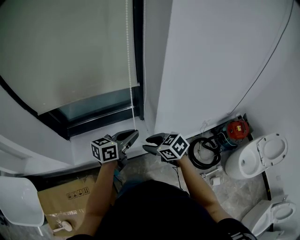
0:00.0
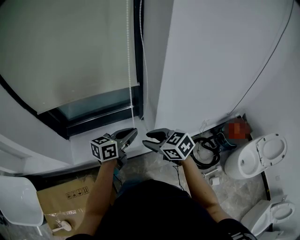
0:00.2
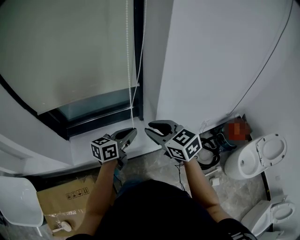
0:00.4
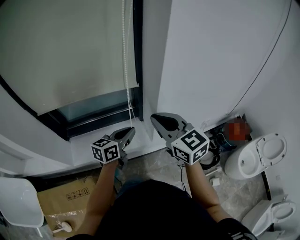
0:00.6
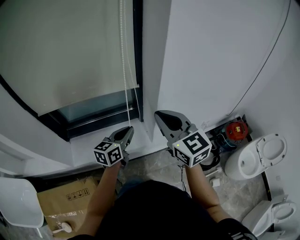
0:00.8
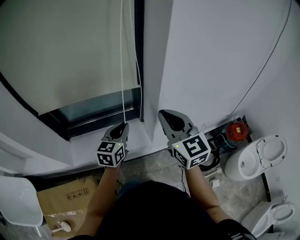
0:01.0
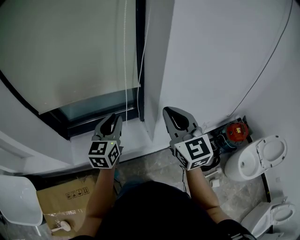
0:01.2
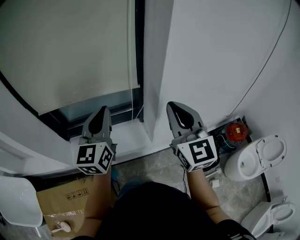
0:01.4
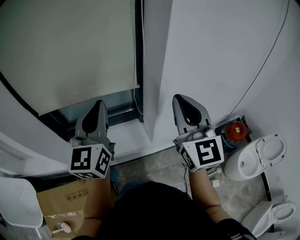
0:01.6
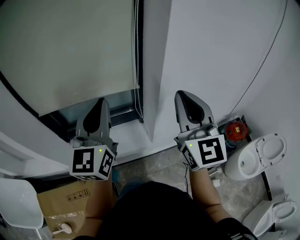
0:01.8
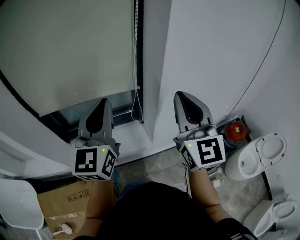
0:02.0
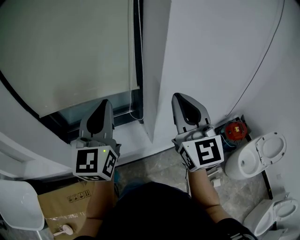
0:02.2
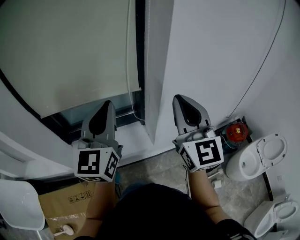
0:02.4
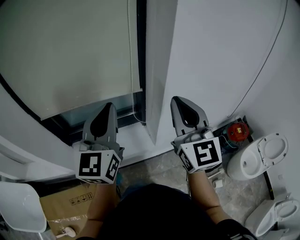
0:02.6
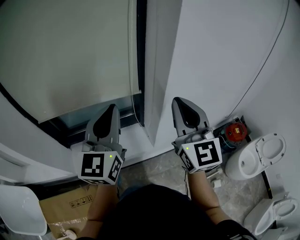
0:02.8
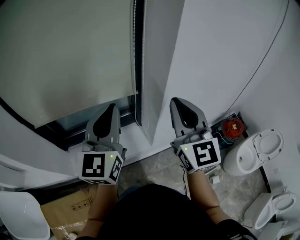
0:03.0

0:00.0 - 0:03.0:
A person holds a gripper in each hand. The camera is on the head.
0:00.0 - 0:01.6: The right gripper heads upward, covering approximately 30 cm, and tilts its fingers approximately 50 degrees upward. Meanwhile the left gripper travels upward and to the left by some 25 cm, and swivels about 60 degrees.
0:01.6 - 0:03.0: The grippers move only a little.

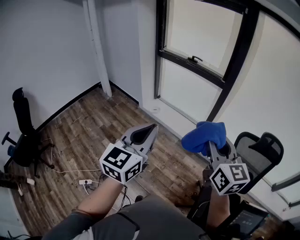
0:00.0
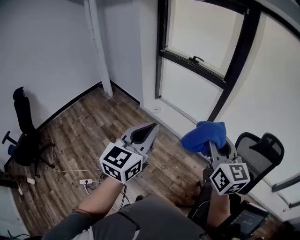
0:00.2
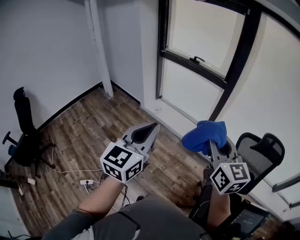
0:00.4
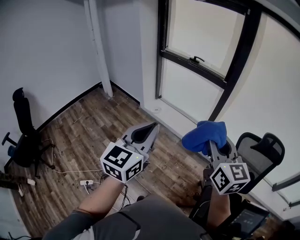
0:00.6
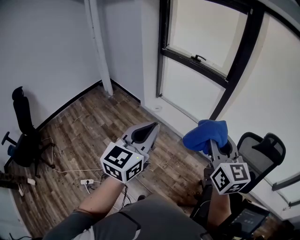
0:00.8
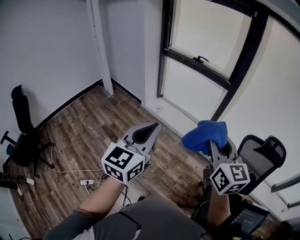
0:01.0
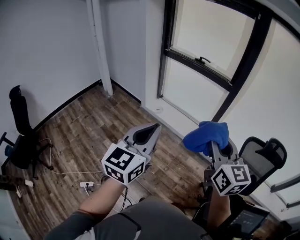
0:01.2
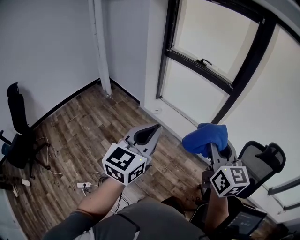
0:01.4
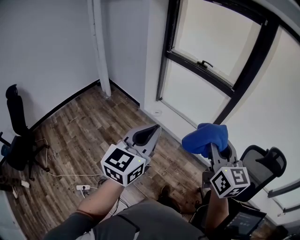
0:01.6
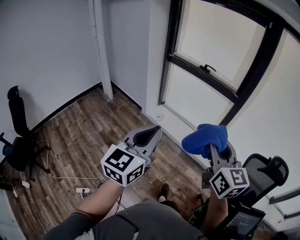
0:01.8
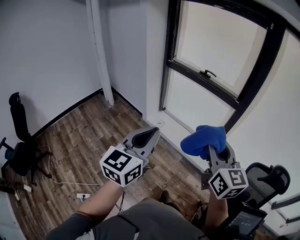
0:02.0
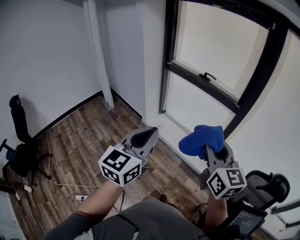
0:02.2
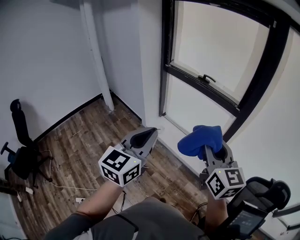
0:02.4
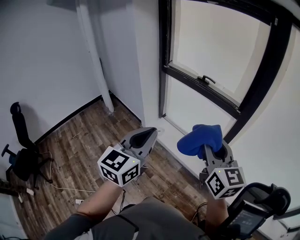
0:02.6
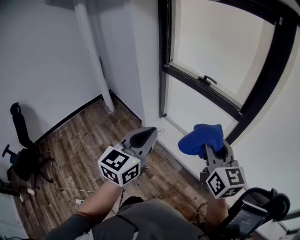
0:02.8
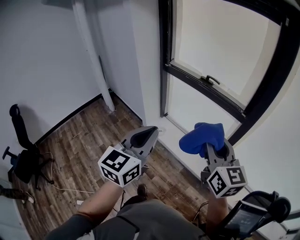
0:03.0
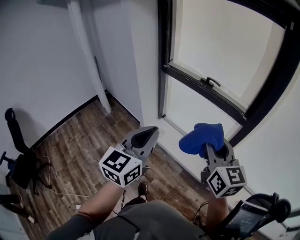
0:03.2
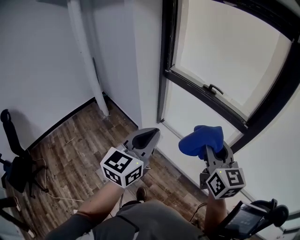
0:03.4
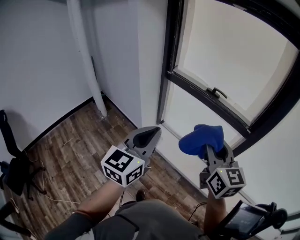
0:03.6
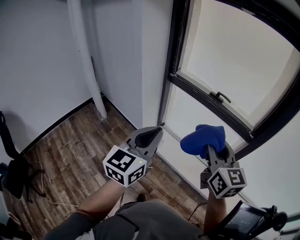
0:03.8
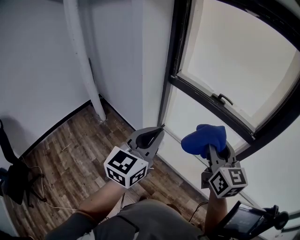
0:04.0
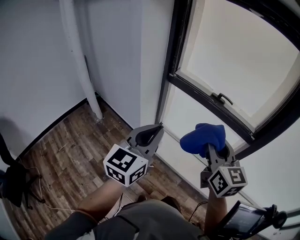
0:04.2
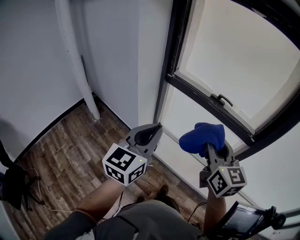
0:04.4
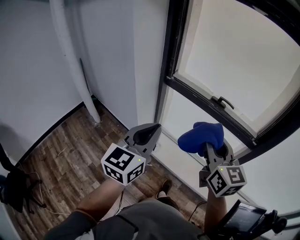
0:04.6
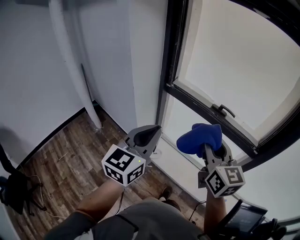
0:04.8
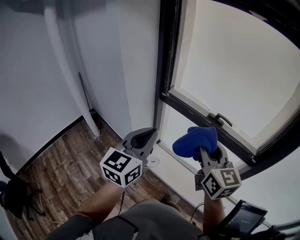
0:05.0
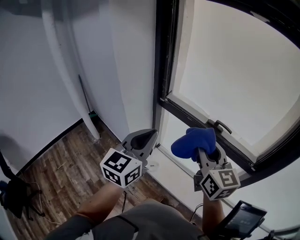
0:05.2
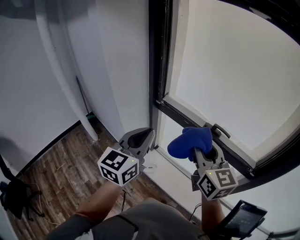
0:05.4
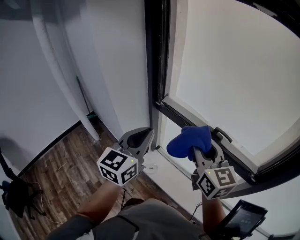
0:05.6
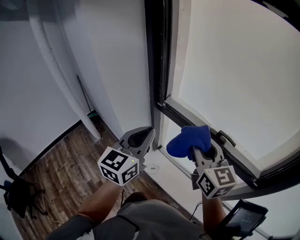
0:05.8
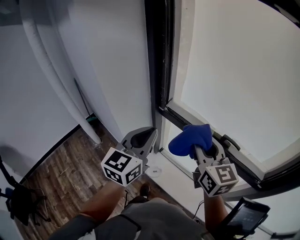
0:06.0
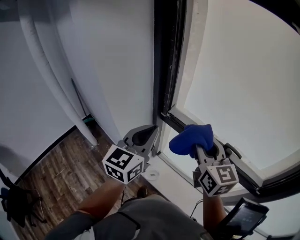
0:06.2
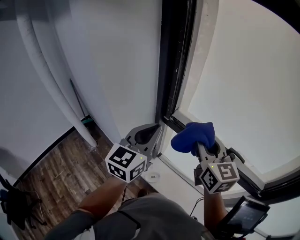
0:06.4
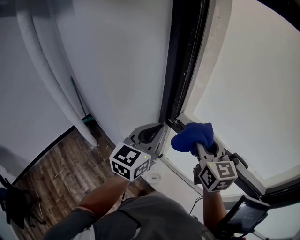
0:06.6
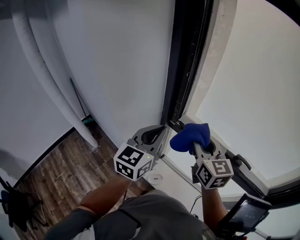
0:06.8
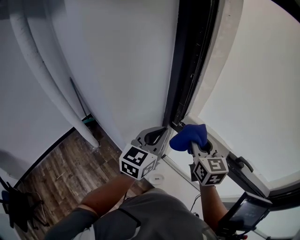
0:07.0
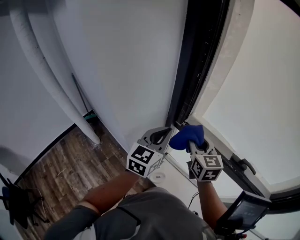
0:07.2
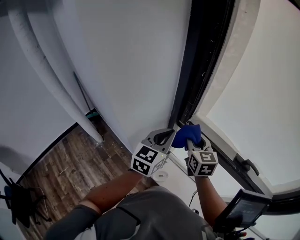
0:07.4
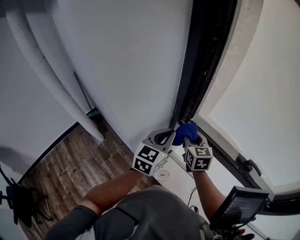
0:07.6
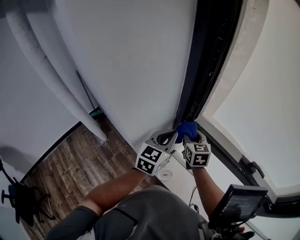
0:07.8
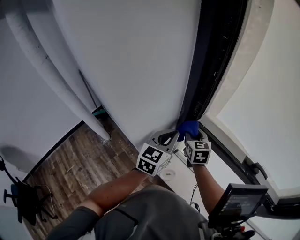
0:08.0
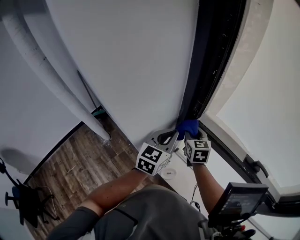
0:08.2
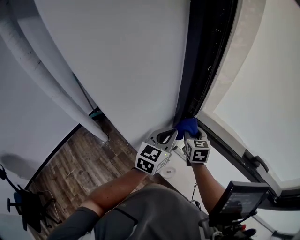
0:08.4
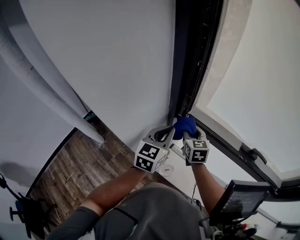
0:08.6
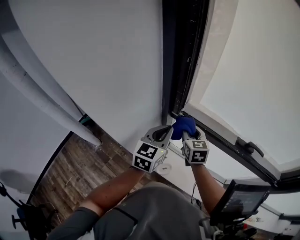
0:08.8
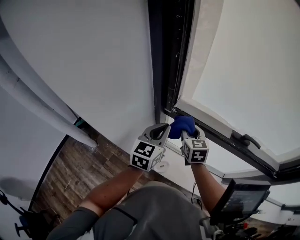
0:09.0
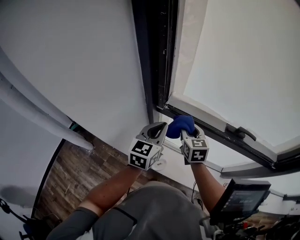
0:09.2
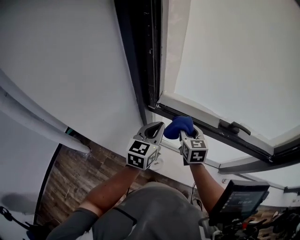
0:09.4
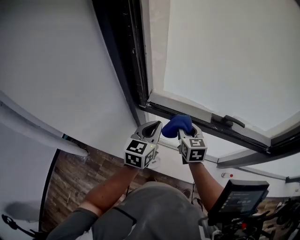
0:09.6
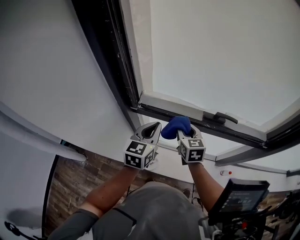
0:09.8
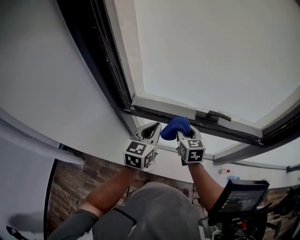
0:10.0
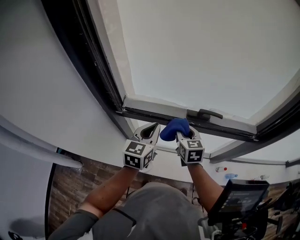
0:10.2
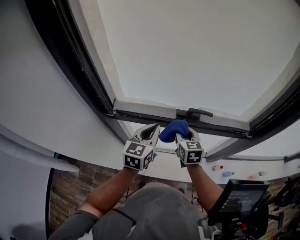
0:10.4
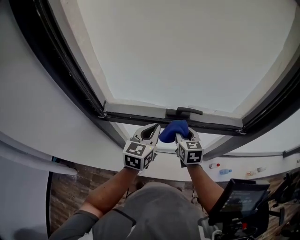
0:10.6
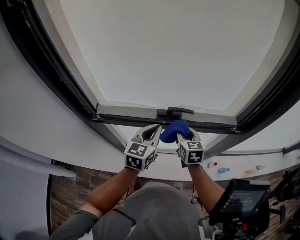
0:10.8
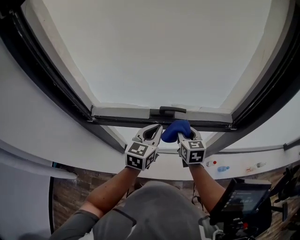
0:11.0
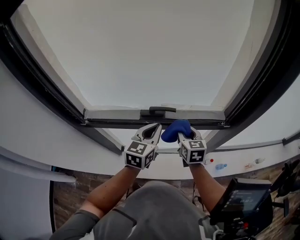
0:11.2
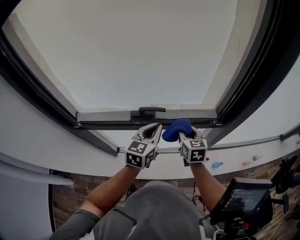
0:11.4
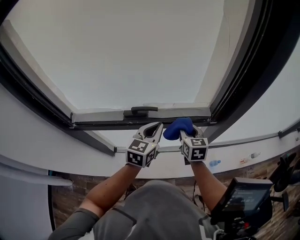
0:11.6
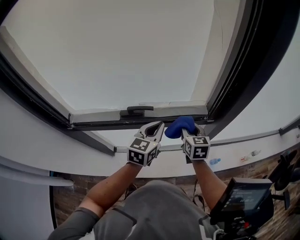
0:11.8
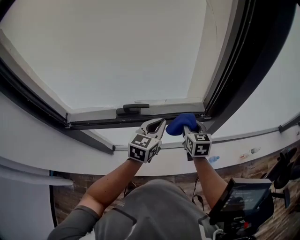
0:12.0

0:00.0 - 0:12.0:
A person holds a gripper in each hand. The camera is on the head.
0:00.0 - 0:01.6: The two grippers go approximately 15 cm to the left and forward.
0:01.6 - 0:03.0: Both grippers move forward, about 30 cm.
0:03.0 - 0:04.4: The two grippers go about 25 cm forward and to the left.
0:04.4 - 0:06.0: The two grippers go roughly 30 cm forward.
0:06.0 - 0:07.6: The grippers both shift forward, downward and to the left by approximately 30 cm.
0:07.6 - 0:09.0: The left gripper moves roughly 5 cm. The right gripper moves to the right, approximately 5 cm.
0:09.0 - 0:10.4: Both grippers move to the right, about 25 cm.
0:10.4 - 0:12.0: Both grippers move to the right, some 30 cm.

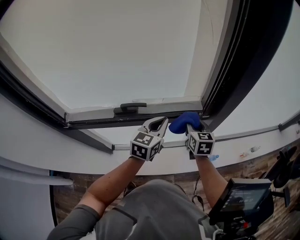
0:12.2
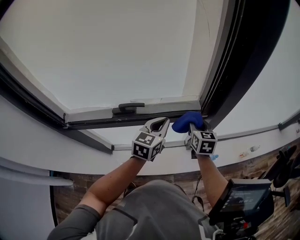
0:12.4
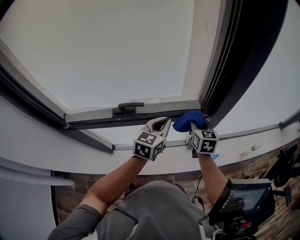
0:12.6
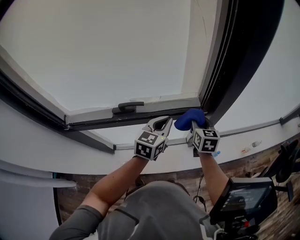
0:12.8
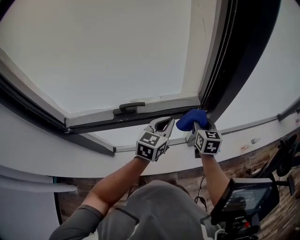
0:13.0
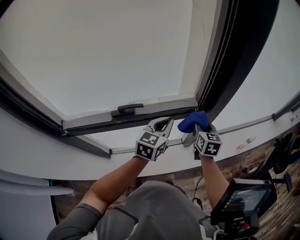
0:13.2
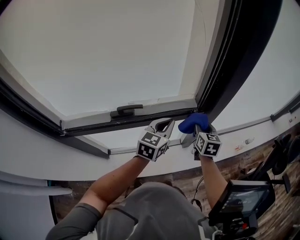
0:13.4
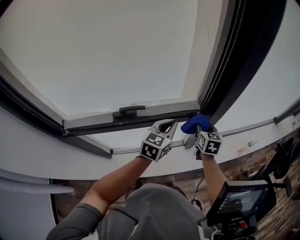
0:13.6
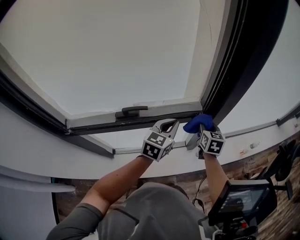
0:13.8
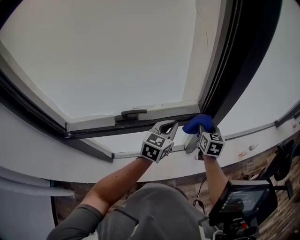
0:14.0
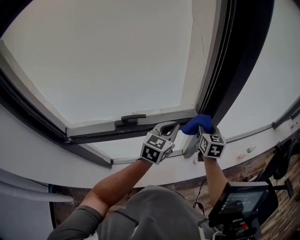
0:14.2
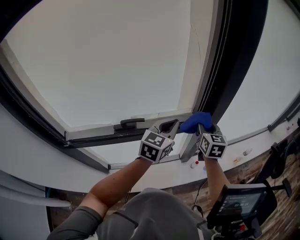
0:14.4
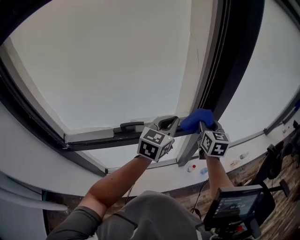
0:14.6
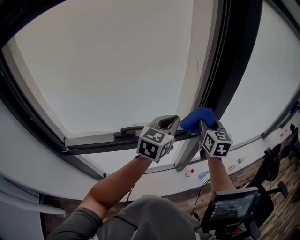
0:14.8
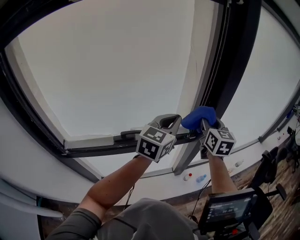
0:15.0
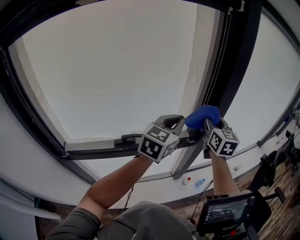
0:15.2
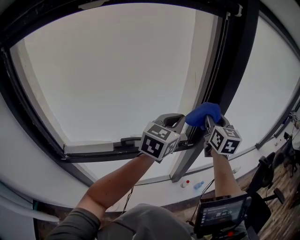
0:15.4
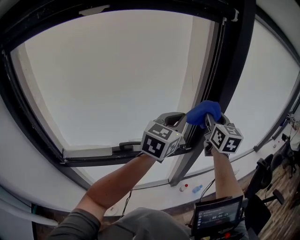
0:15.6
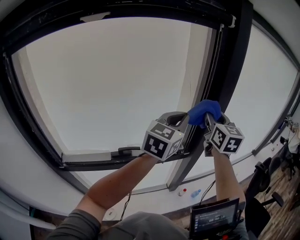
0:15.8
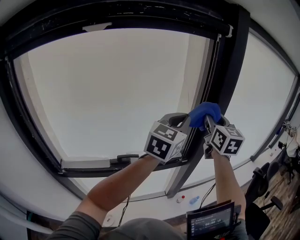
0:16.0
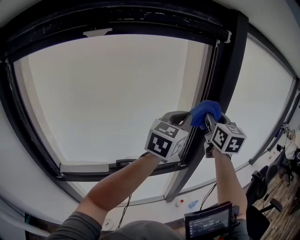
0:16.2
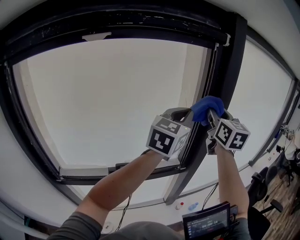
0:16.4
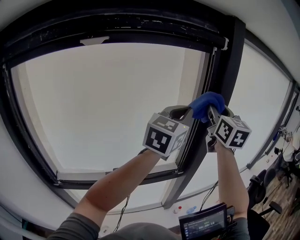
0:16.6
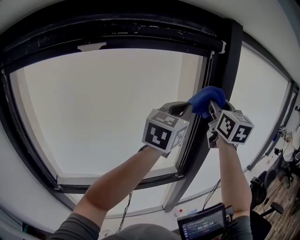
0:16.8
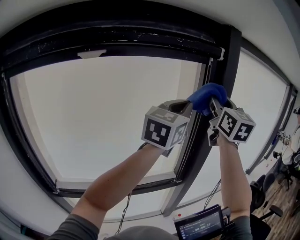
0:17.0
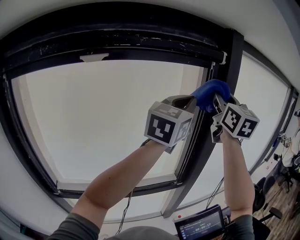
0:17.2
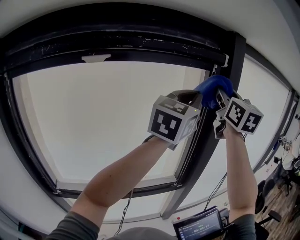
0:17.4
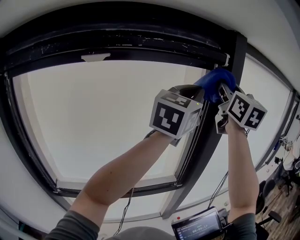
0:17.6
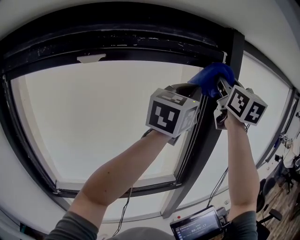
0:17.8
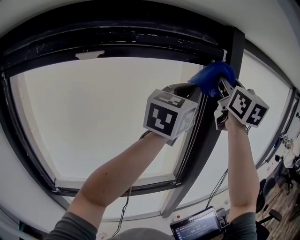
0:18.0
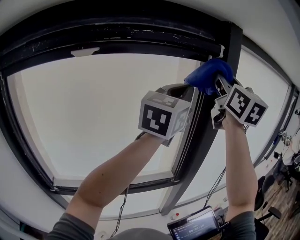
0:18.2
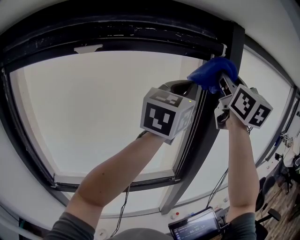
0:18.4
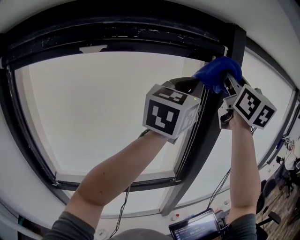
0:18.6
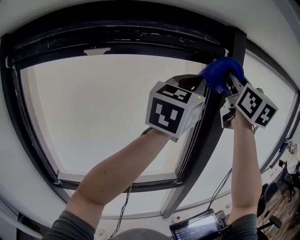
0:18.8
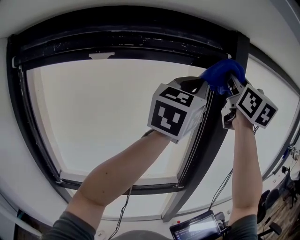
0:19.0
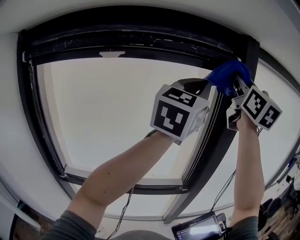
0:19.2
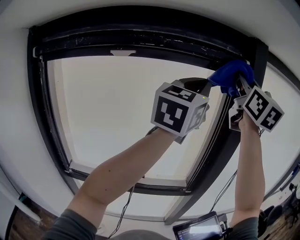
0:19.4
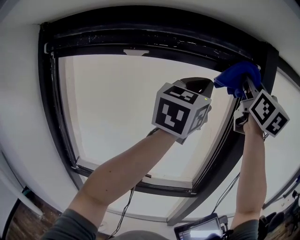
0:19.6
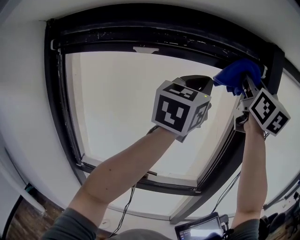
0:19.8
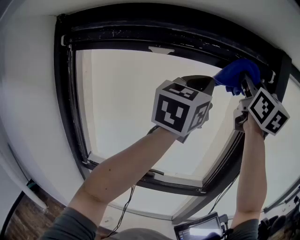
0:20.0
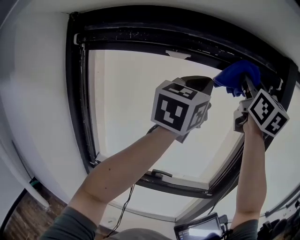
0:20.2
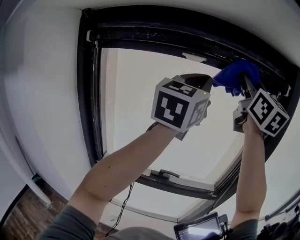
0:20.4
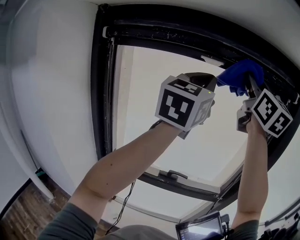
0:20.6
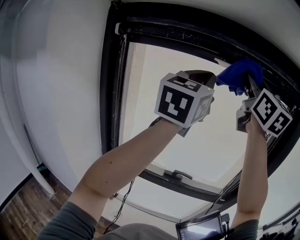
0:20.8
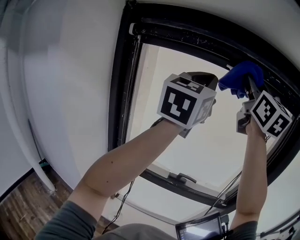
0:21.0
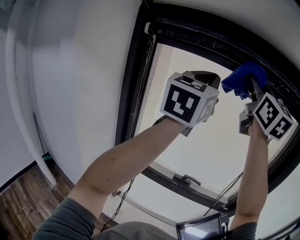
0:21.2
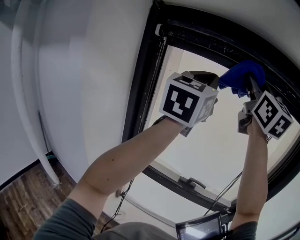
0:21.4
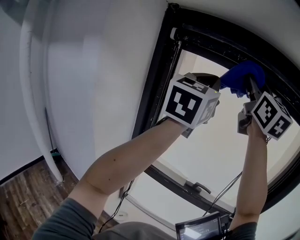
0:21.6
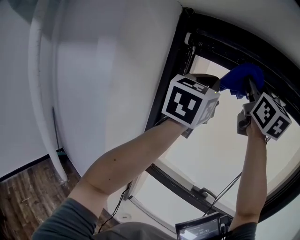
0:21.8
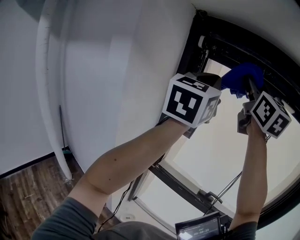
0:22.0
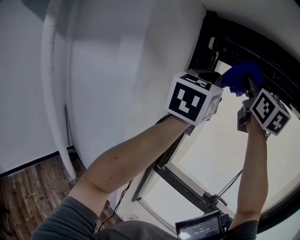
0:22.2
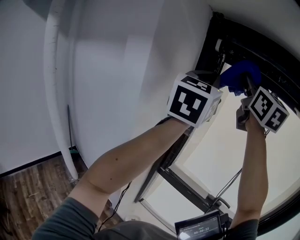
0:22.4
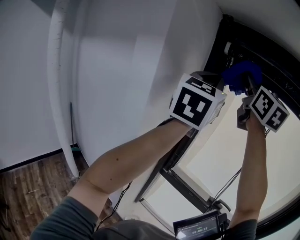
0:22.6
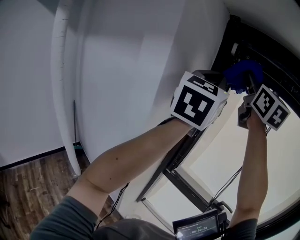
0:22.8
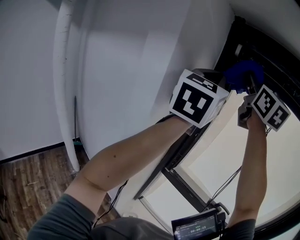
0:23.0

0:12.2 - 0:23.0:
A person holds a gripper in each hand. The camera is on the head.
0:12.2 - 0:13.8: The right gripper travels to the right by roughly 5 cm.
0:13.8 - 0:15.2: Both grippers travel together upward, about 25 cm. The right gripper turns by about 20 degrees.
0:15.2 - 0:16.8: Both grippers travel together upward, about 25 cm.
0:16.8 - 0:18.4: The grippers both shift upward by roughly 10 cm.
0:18.4 - 0:20.0: The right gripper moves to the left, some 10 cm. The left gripper travels to the left and backward by approximately 15 cm.
0:20.0 - 0:21.4: The two grippers go about 30 cm to the left.
0:21.4 - 0:23.0: The right gripper moves to the left and forward, about 30 cm. The left gripper is displaced to the left by about 25 cm.
